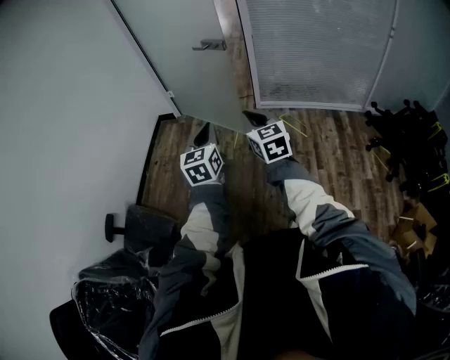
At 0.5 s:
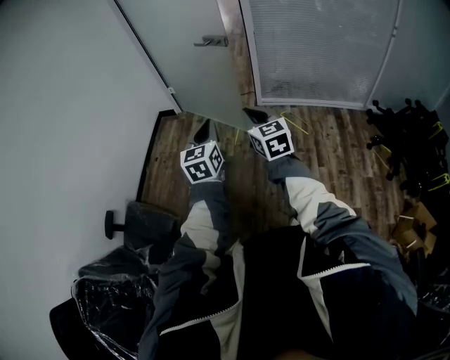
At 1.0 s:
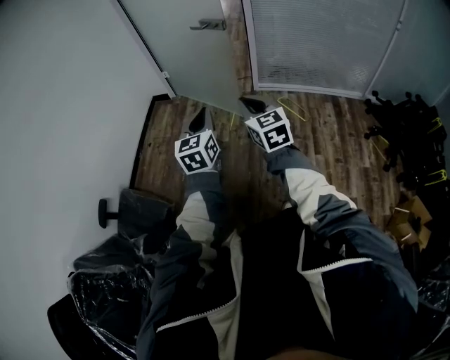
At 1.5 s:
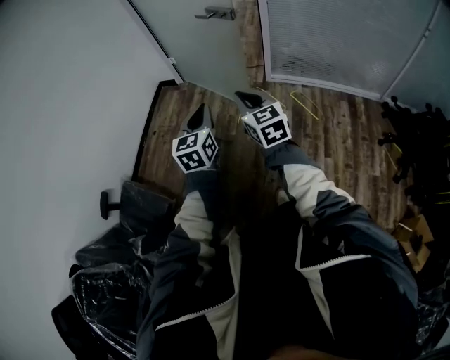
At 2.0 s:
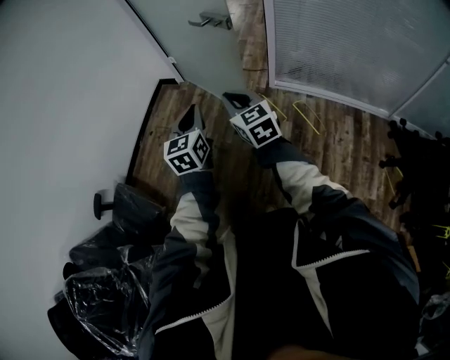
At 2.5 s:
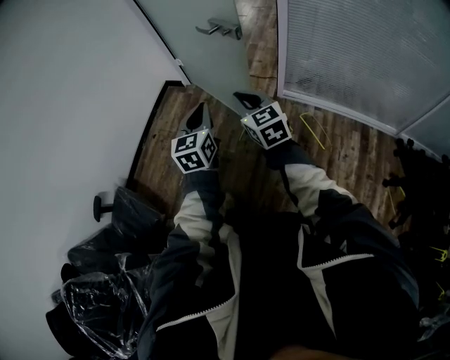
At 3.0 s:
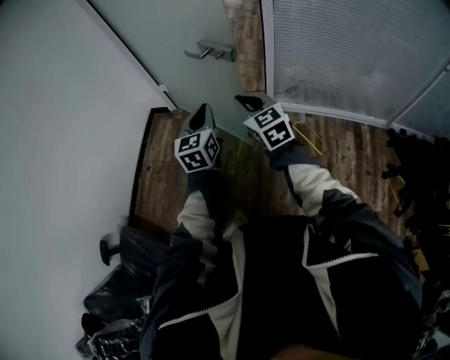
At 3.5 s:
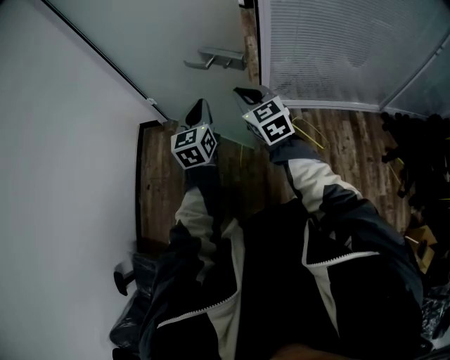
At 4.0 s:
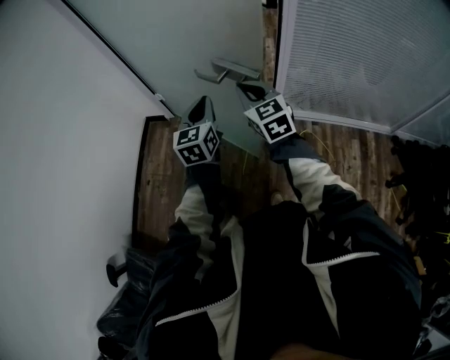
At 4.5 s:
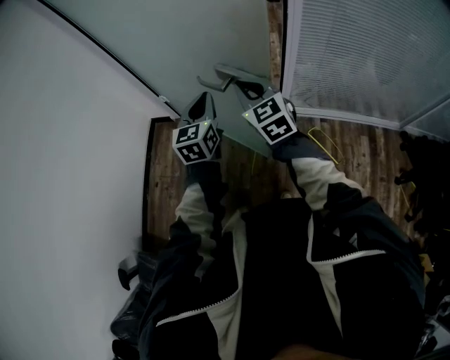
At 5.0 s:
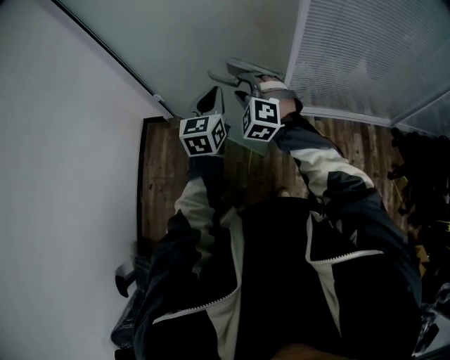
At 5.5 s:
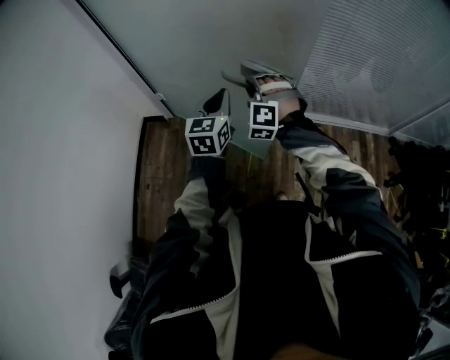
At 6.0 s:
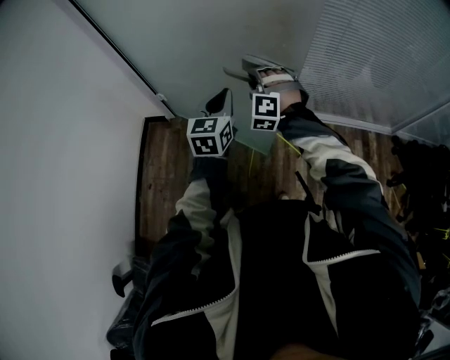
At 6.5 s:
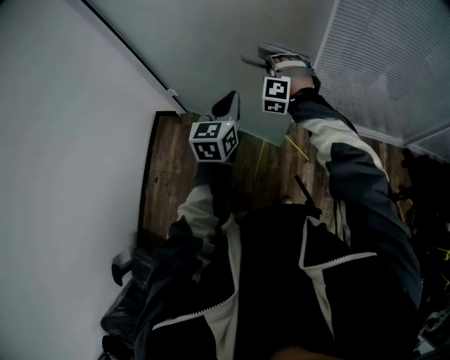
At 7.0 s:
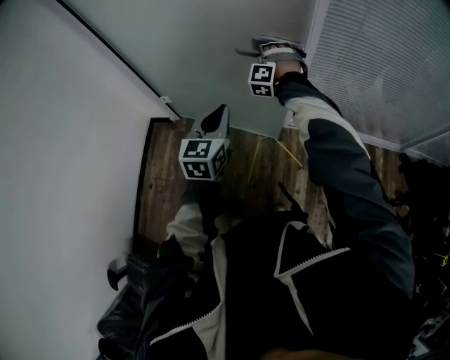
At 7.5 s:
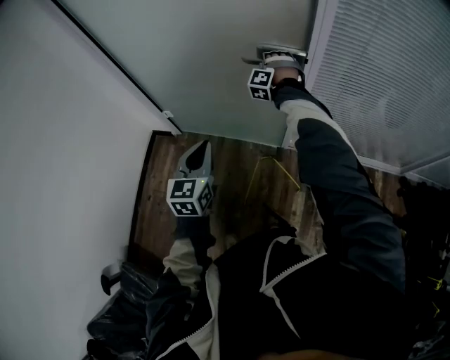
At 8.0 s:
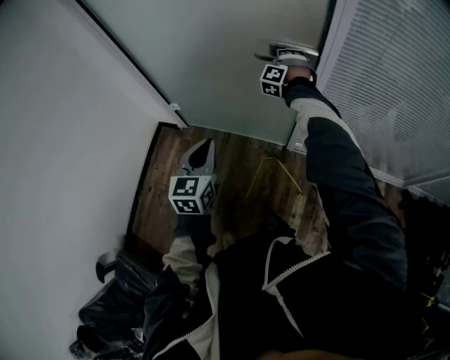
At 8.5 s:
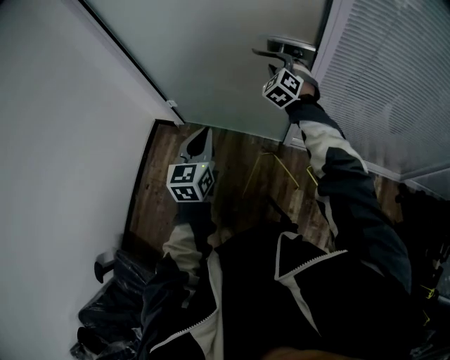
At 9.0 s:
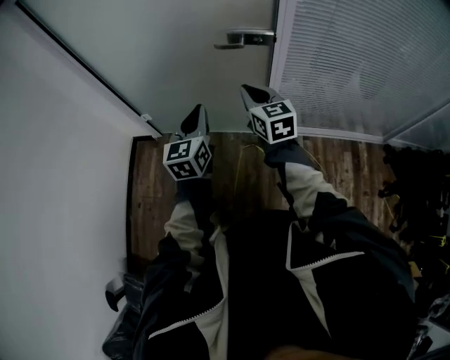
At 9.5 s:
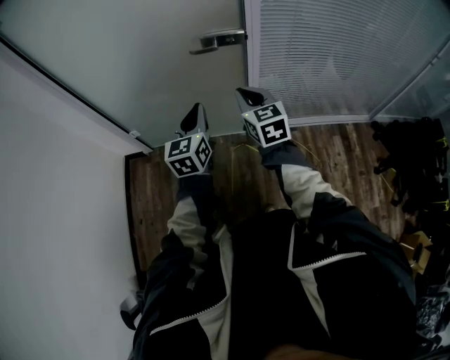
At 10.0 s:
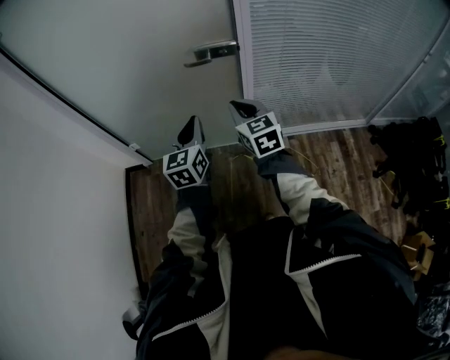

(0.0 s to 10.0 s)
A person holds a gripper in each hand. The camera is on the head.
0.0 s - 2.0 s: Both grippers travel together forward, approximately 25 cm.
2.0 s - 4.0 s: The two grippers go roughly 40 cm forward.
4.0 s - 6.0 s: The right gripper shifts approximately 15 cm forward and downward, rolls counterclockwise, seen from behind, by roughly 70 degrees, and opens up. Meanwhile the left gripper heads forward, covering about 5 cm.
6.0 s - 8.0 s: The right gripper is displaced forward by roughly 30 cm.
8.0 s - 10.0 s: The right gripper moves backward, about 30 cm, rolls clockwise, seen from behind, by some 80 degrees, and closes. Meanwhile the left gripper travels to the right by some 5 cm.

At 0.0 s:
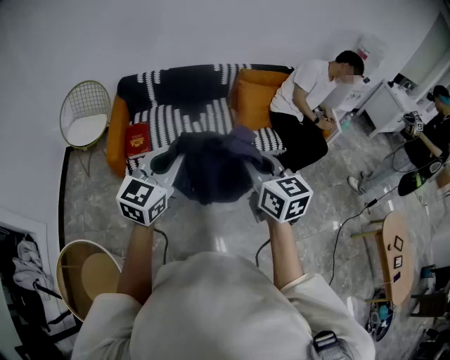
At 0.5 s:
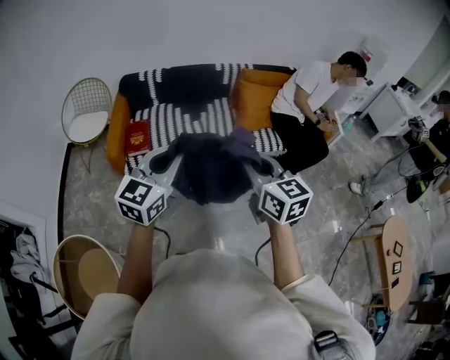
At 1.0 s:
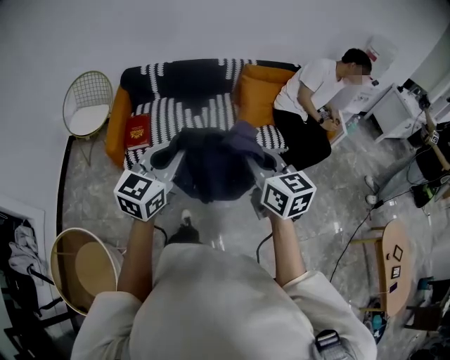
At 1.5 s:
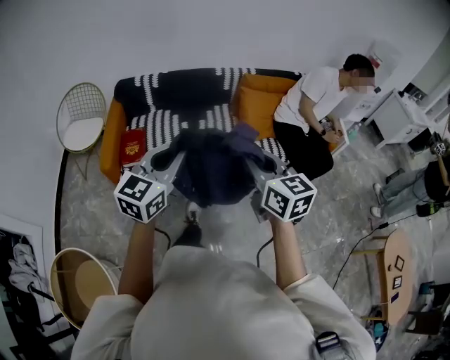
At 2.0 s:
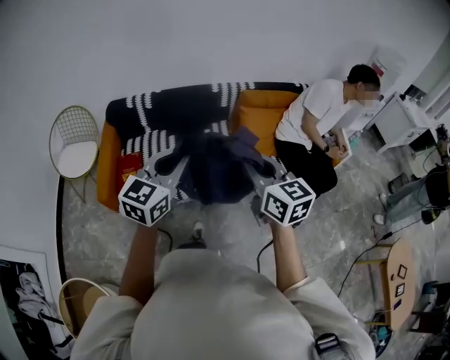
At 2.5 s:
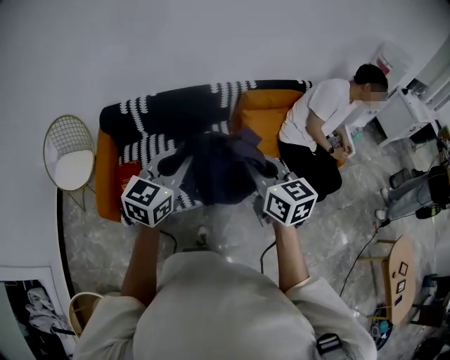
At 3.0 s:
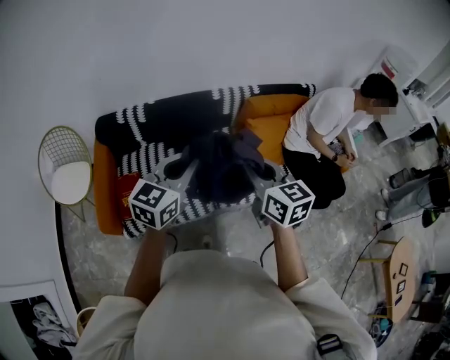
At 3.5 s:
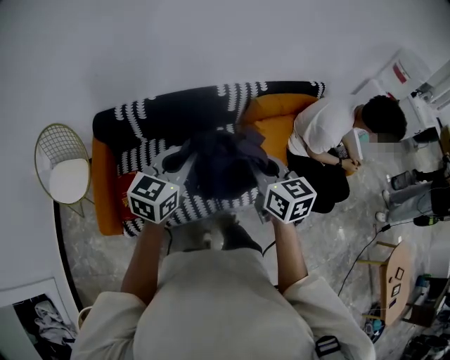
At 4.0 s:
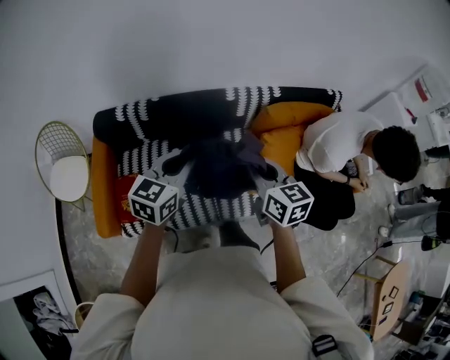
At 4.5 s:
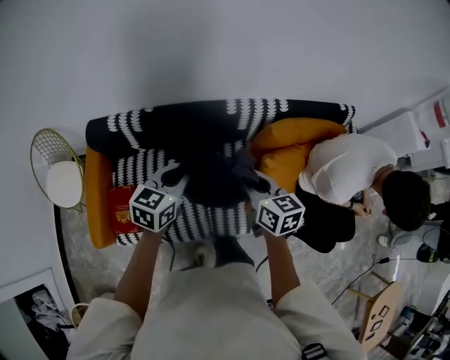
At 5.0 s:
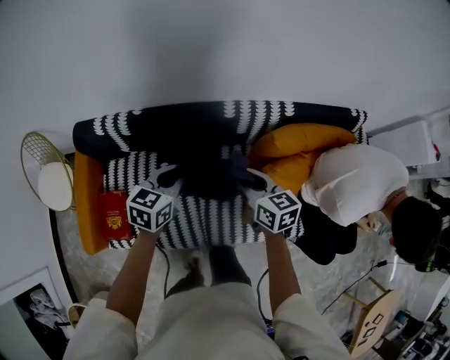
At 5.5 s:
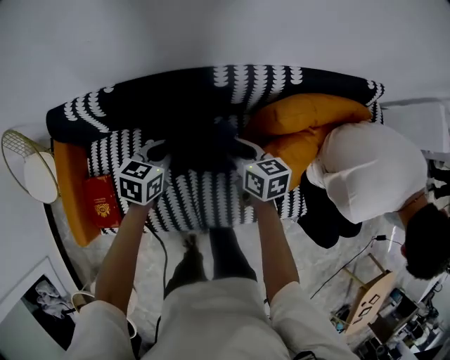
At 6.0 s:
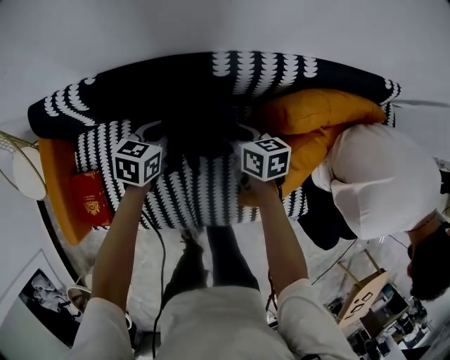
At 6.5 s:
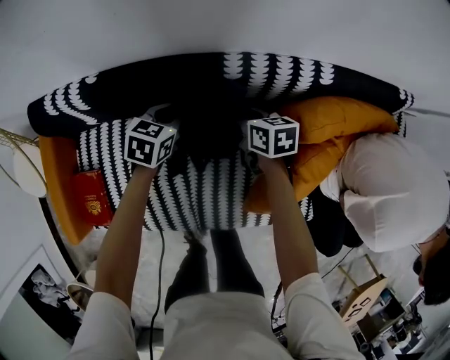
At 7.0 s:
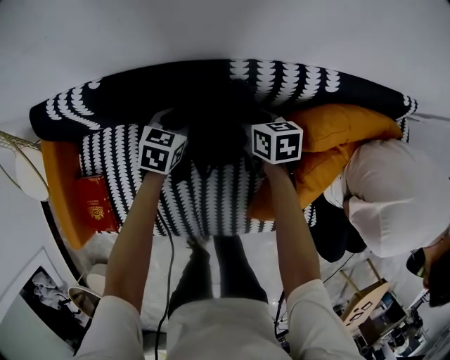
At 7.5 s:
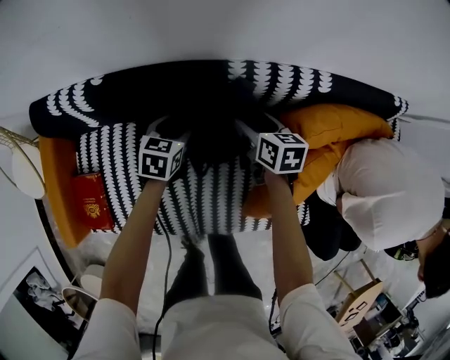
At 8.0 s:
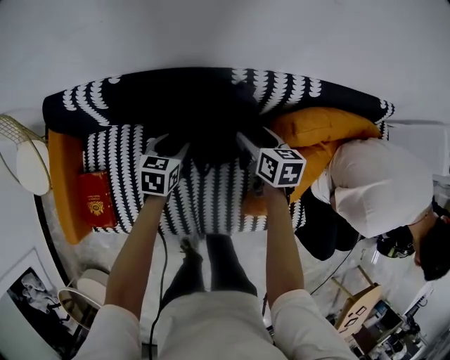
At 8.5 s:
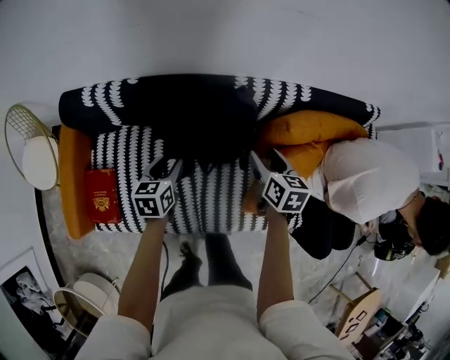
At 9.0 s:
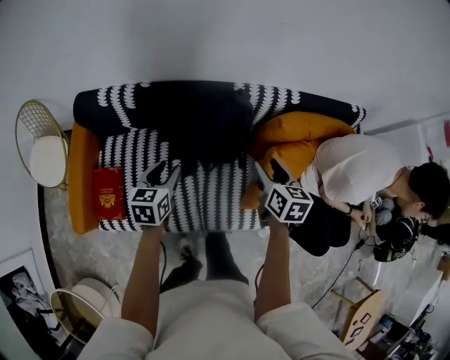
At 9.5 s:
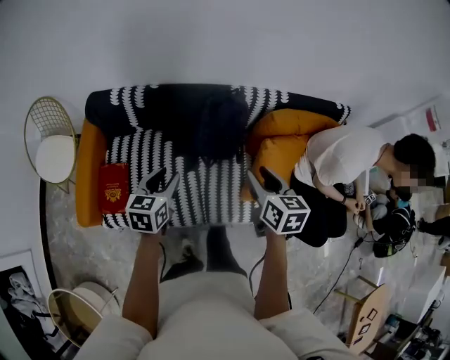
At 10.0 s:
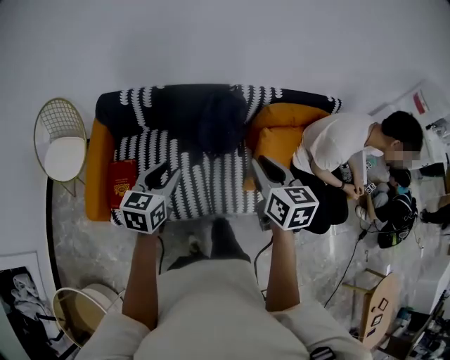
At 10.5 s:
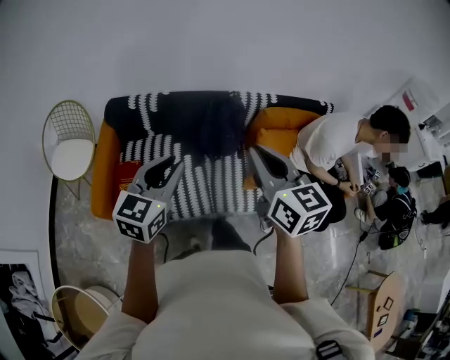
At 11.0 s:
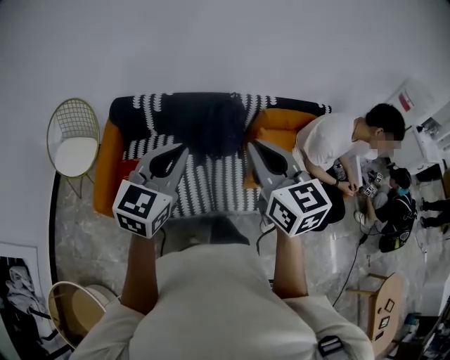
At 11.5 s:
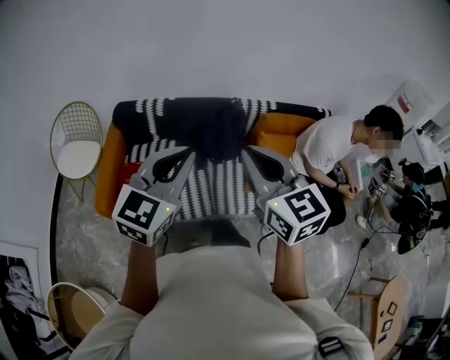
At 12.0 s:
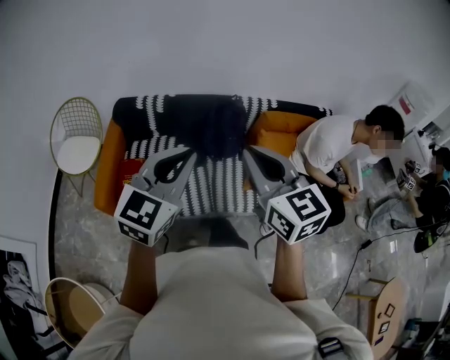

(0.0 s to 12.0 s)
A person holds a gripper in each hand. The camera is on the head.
0.0 s - 2.0 s: The two grippers go approximately 30 cm forward.
2.0 s - 4.0 s: The pair of grippers is taken forward, some 40 cm.
4.0 s - 6.0 s: The two grippers go some 50 cm downward and forward. The left gripper swivels some 30 degrees. The right gripper changes its angle by about 30 degrees.
6.0 s - 8.0 s: The left gripper travels forward and back again, roughly 5 cm each way, and opens, while the right gripper opens.
8.0 s - 10.0 s: Both grippers are carried backward, some 40 cm. The grippers both shift upward by approximately 35 cm. The right gripper turns by roughly 20 degrees, and closes, while the left gripper changes its angle by some 20 degrees.
10.0 s - 12.0 s: The left gripper moves upward and backward, some 30 cm, changes its angle by approximately 30 degrees, and closes its fingers, while the right gripper moves backward and upward, roughly 25 cm, and changes its angle by some 30 degrees.

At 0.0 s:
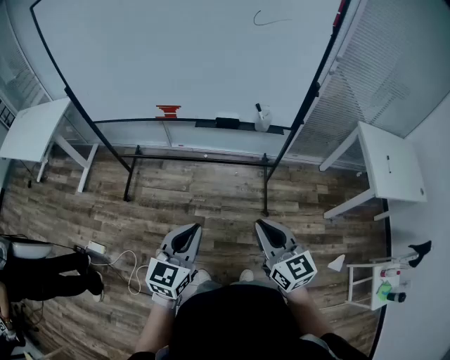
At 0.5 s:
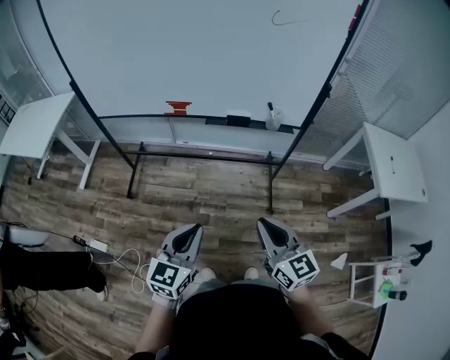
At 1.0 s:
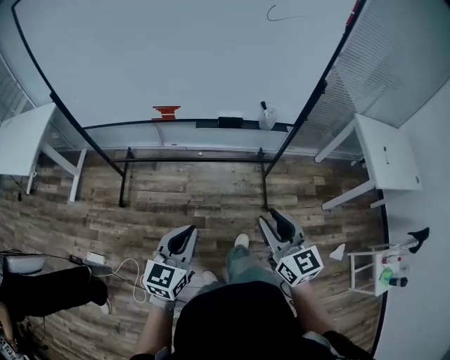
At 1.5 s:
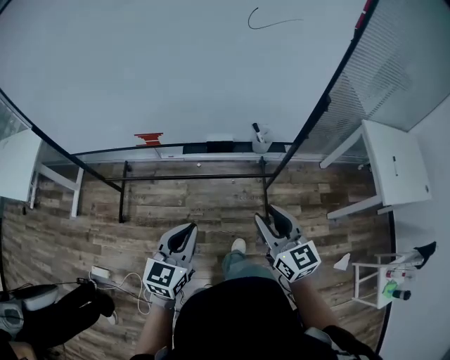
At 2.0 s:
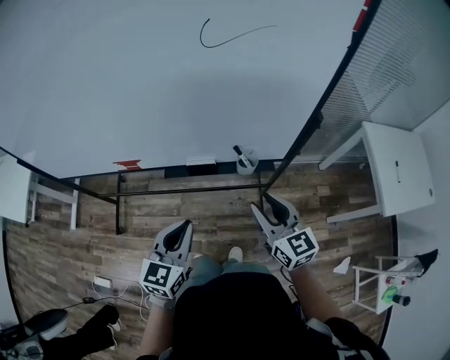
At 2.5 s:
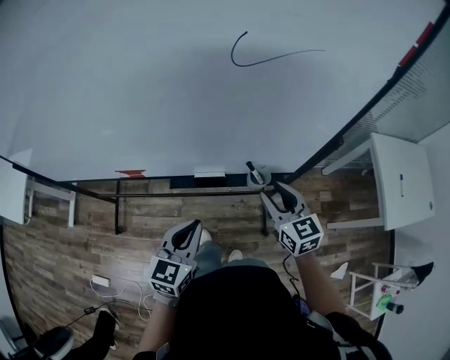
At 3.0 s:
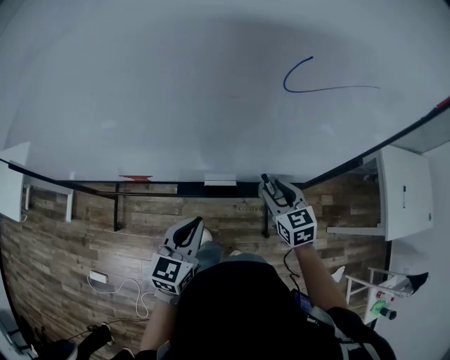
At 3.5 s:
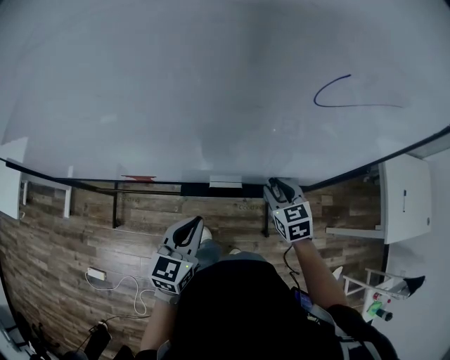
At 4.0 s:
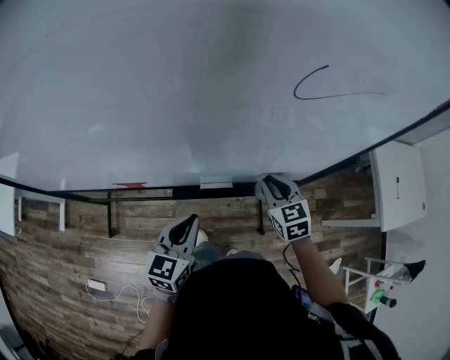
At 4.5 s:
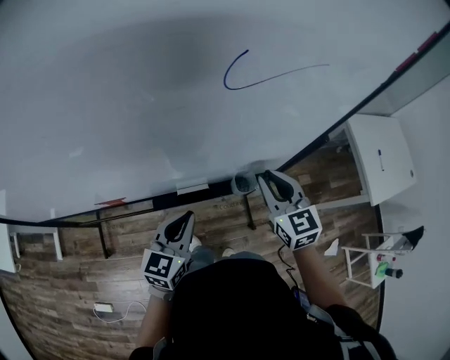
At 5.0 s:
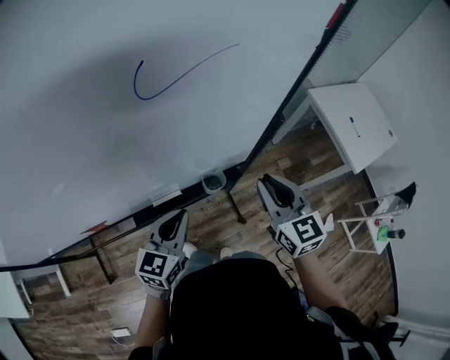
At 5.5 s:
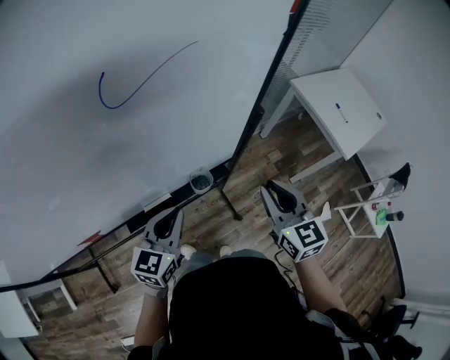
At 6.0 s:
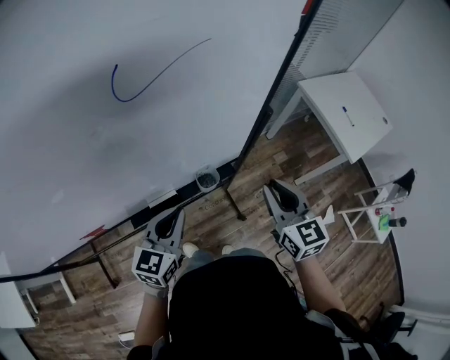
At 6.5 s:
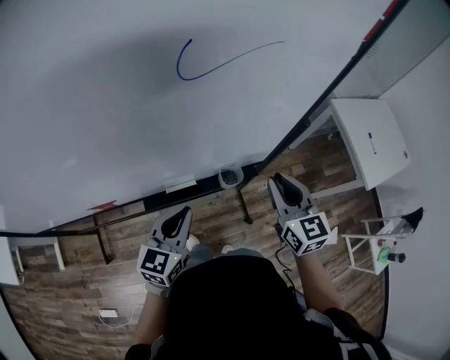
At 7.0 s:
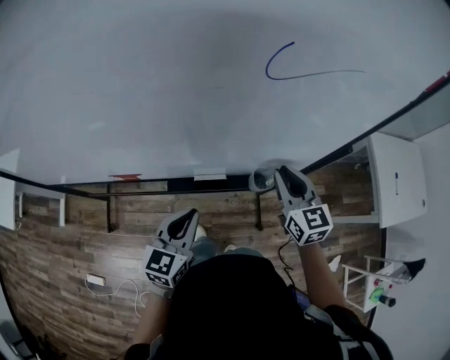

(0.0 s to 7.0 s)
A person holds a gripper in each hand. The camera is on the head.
0.0 s - 2.0 s: Both grippers move forward, some 35 cm. The right gripper opens up.
2.0 s - 3.5 s: The left gripper goes approximately 15 cm forward and to the left; the right gripper travels forward and downward by approximately 20 cm, and changes its angle by approximately 30 degrees.
3.5 s - 5.0 s: The right gripper moves upward, to the right and backward, about 20 cm, and turns by approximately 30 degrees. The left gripper goes about 10 cm to the right, and swivels some 30 degrees.
5.0 s - 7.0 s: The left gripper shifts some 10 cm to the left and backward, and changes its angle by approximately 20 degrees, while the right gripper moves to the left and downward, some 10 cm.
